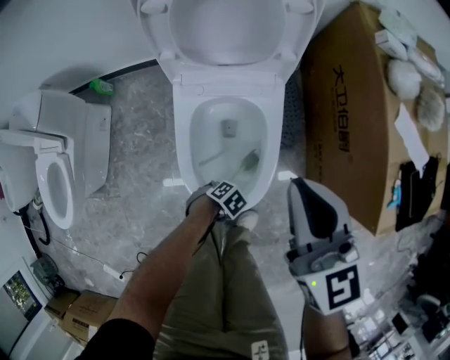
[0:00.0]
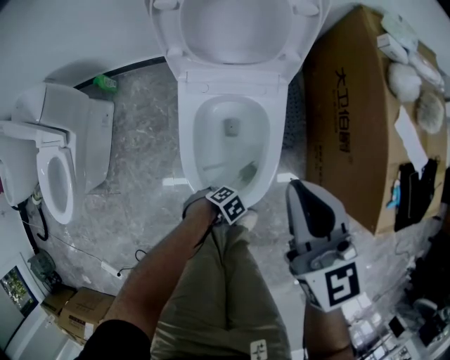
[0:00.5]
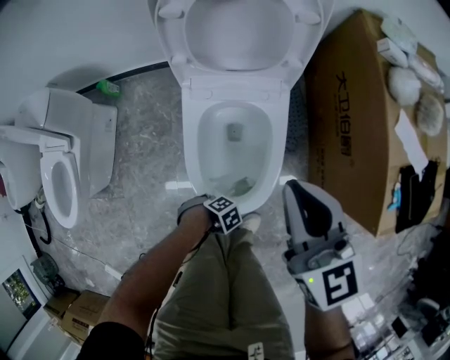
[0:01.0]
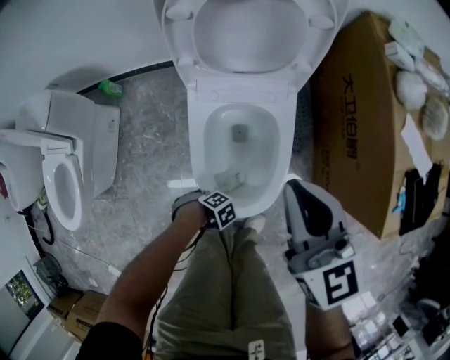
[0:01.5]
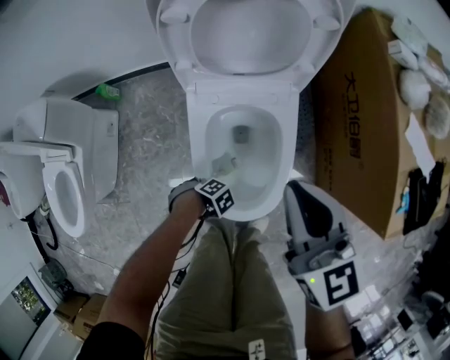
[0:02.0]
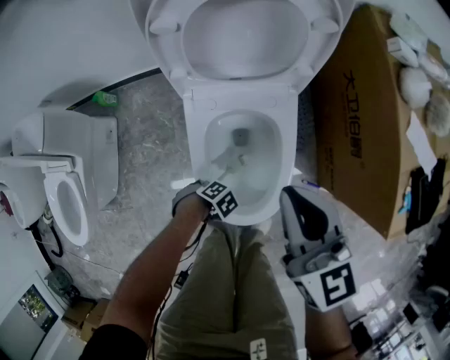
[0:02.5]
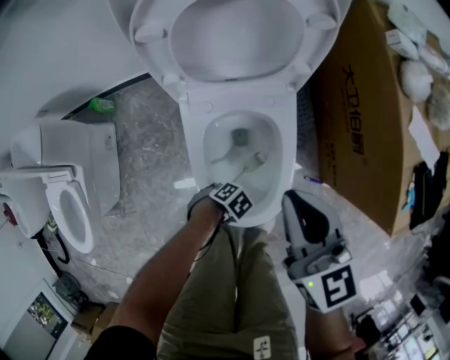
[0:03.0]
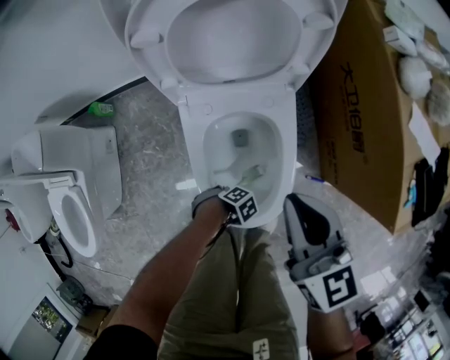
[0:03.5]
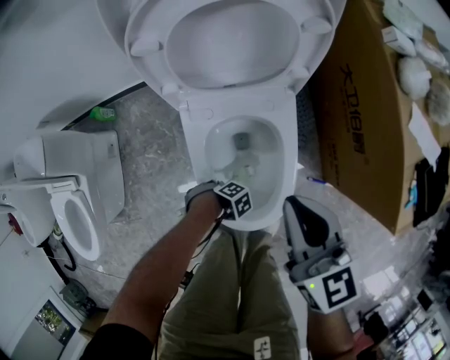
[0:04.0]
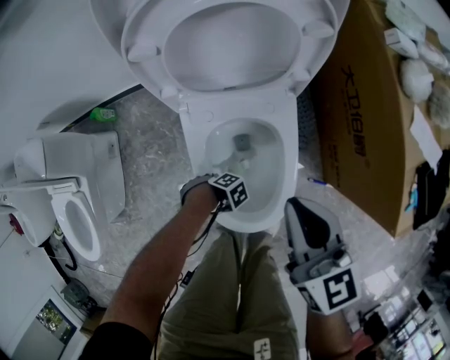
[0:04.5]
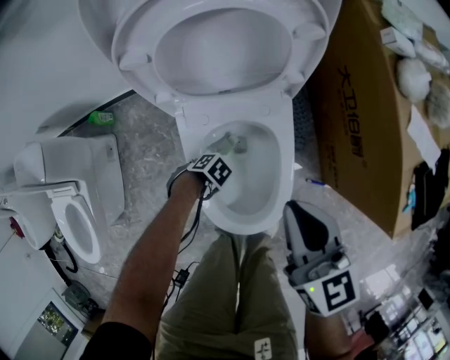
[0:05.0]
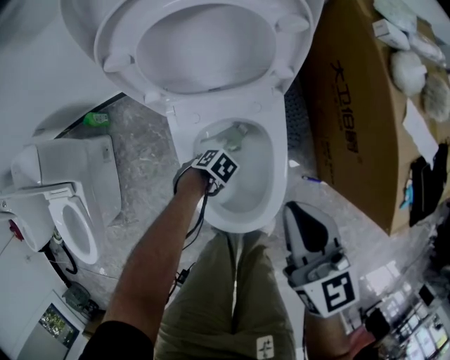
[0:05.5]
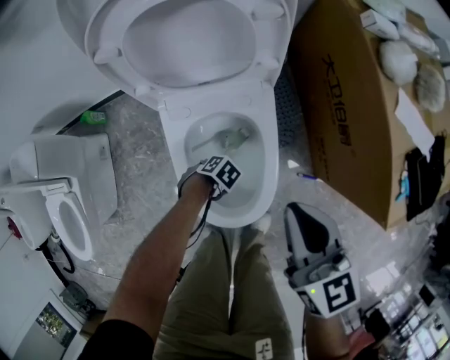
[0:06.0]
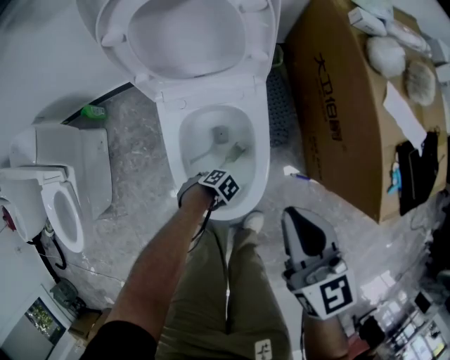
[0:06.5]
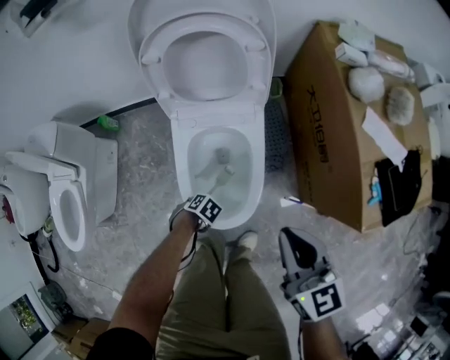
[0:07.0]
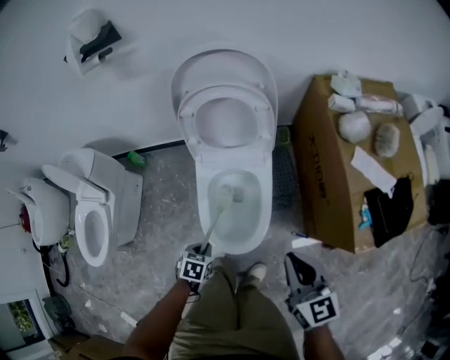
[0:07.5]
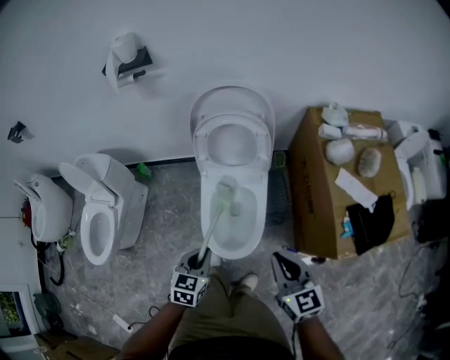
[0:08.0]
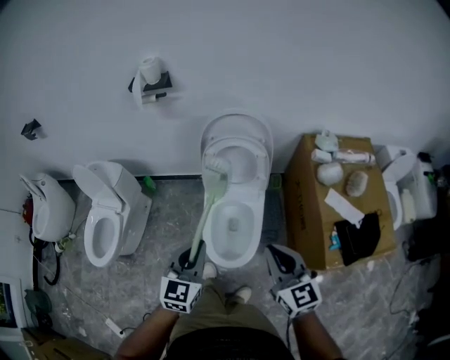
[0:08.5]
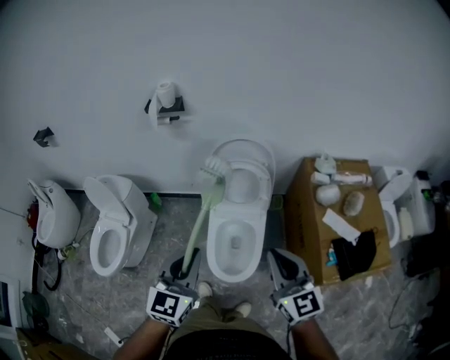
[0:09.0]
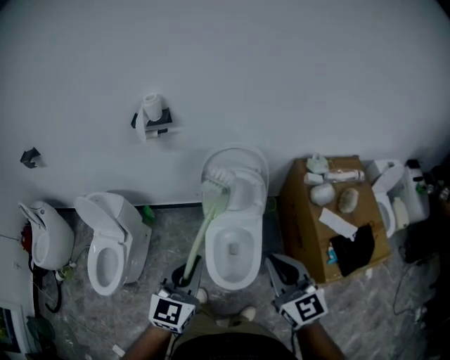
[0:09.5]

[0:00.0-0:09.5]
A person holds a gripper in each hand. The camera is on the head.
0:00.0 to 0:02.0: The left gripper moves about 15 cm, and swivels approximately 20 degrees, while the right gripper changes place by some 5 cm.
0:04.0 to 0:05.5: The left gripper moves to the right, some 10 cm, and changes its angle by approximately 30 degrees.
0:05.5 to 0:07.5: The right gripper ends up about 20 cm from where it was, while the left gripper moves upward, about 20 cm, and swivels about 50 degrees.
0:07.5 to 0:09.5: The right gripper travels upward by some 30 cm, and turns by approximately 20 degrees. The left gripper shifts roughly 50 cm upward, and tilts its fingers roughly 60 degrees upward.

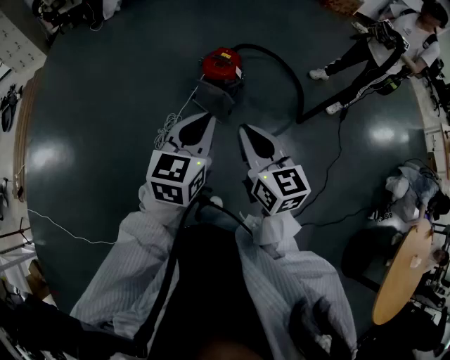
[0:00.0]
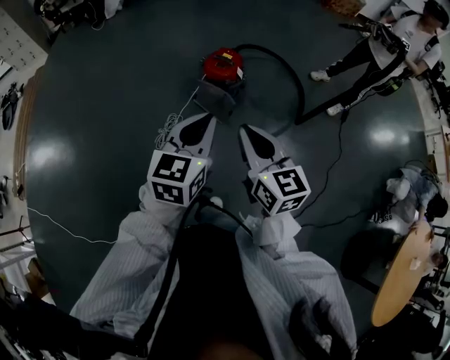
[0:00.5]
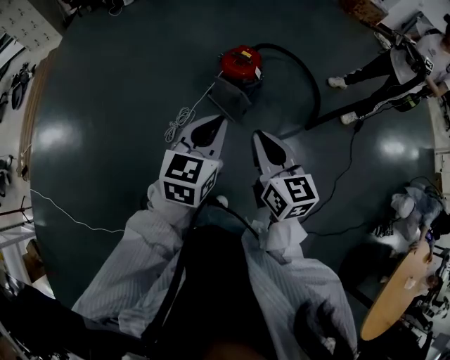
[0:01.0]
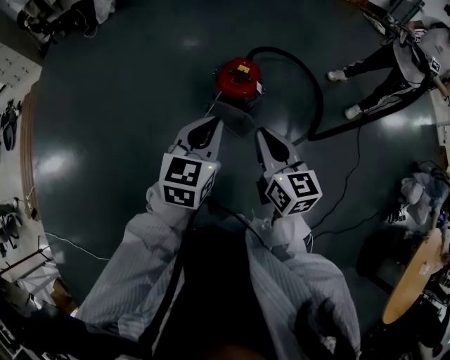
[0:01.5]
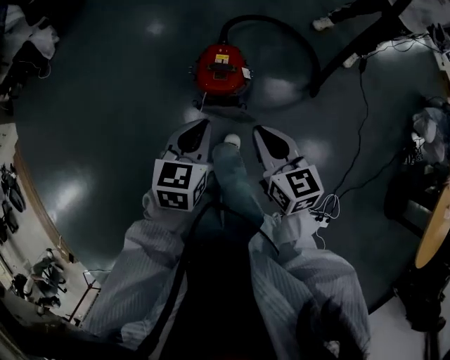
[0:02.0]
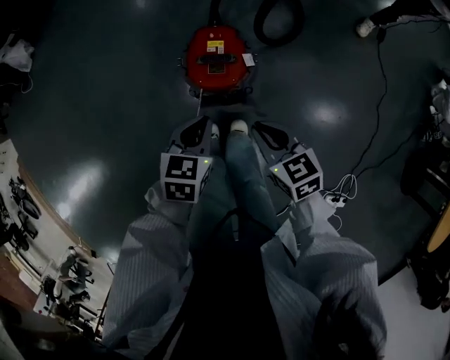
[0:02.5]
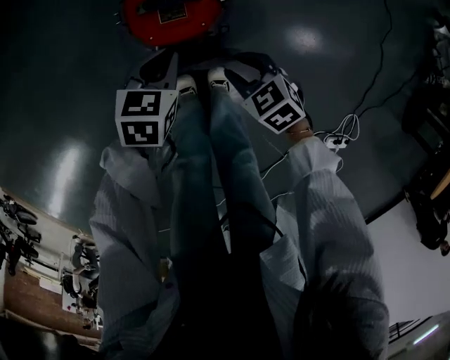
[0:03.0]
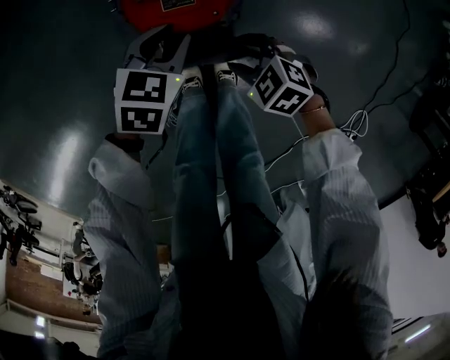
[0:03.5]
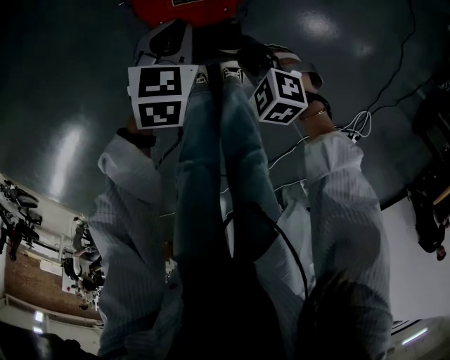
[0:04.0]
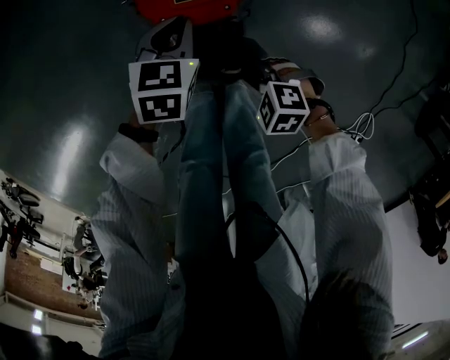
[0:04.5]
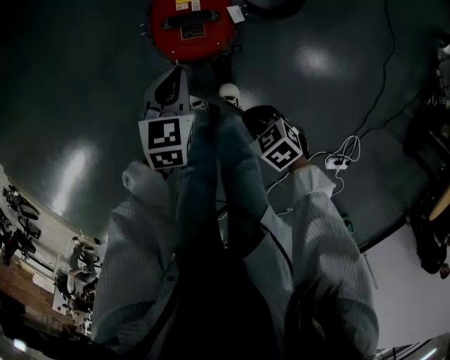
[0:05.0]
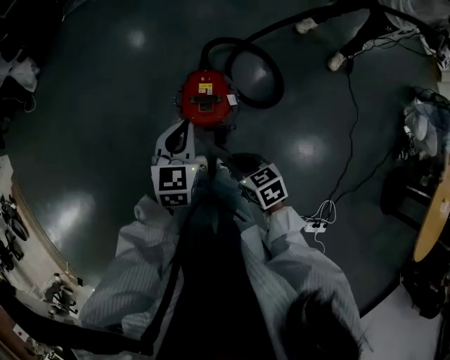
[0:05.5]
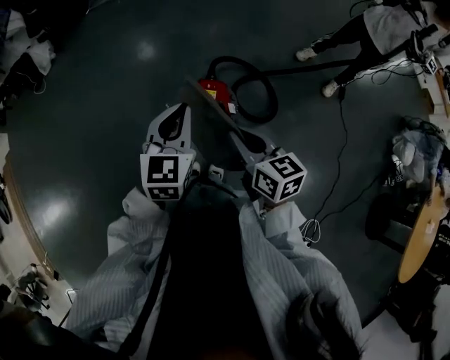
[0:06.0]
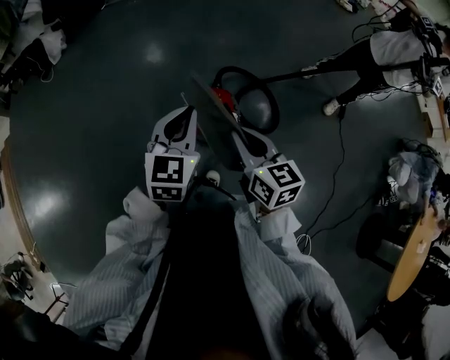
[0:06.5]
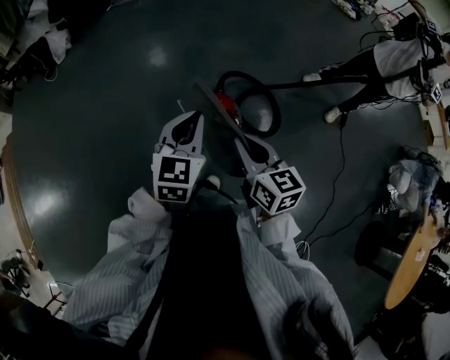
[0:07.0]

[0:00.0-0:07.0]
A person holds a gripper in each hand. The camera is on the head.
0:00.0 to 0:02.0: Both grippers travel together forward and downward, roughly 40 cm. The right gripper swivels about 20 degrees; the left gripper swivels some 30 degrees.
0:02.0 to 0:03.5: The two grippers go some 50 cm downward. The left gripper turns by about 30 degrees, and opens its fingers. The right gripper points its fingers roughly 30 degrees further downward, and opens.
0:03.5 to 0:05.0: Both grippers move upward, approximately 10 cm. The right gripper changes its angle by about 20 degrees, and closes up; the left gripper swivels approximately 20 degrees, and closes.
0:05.0 to 0:07.0: Both grippers travel together upward, some 50 cm. The right gripper tips its fingers upward by about 40 degrees. Meanwhile the left gripper changes its angle by about 30 degrees.

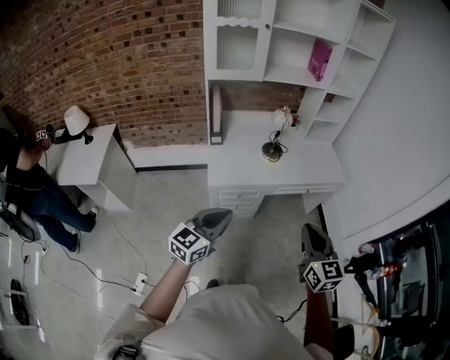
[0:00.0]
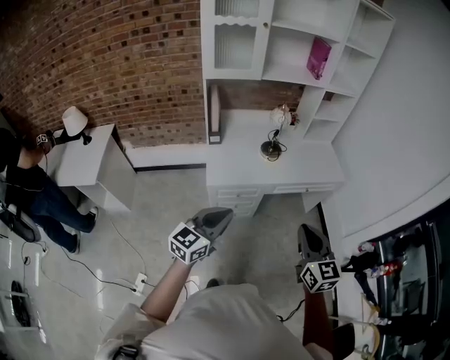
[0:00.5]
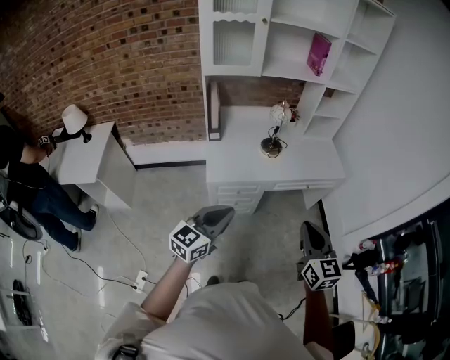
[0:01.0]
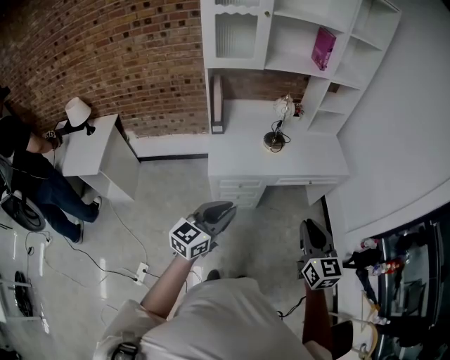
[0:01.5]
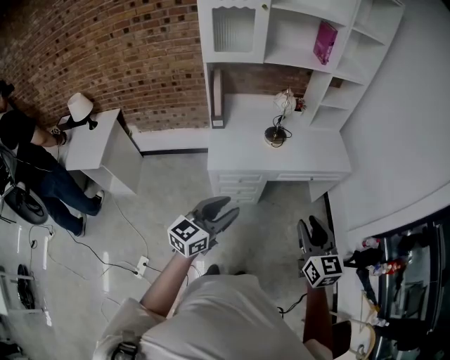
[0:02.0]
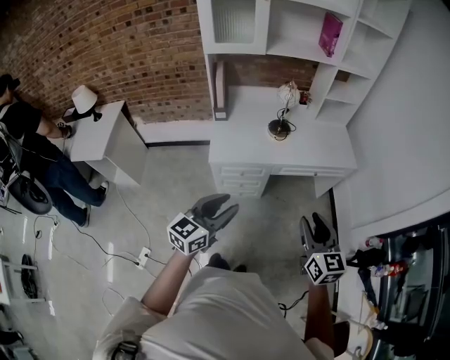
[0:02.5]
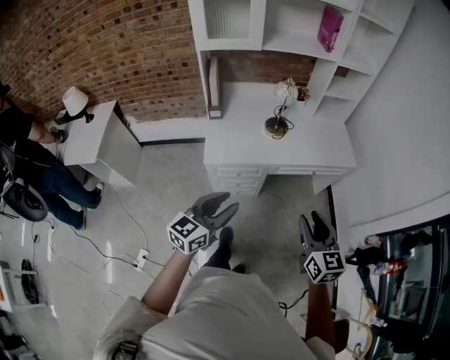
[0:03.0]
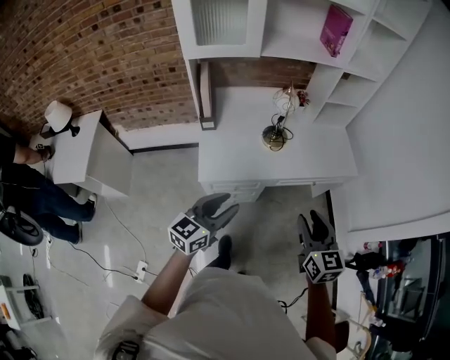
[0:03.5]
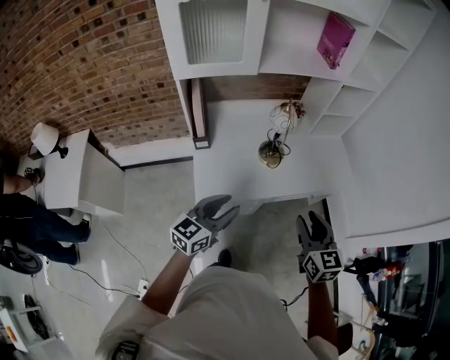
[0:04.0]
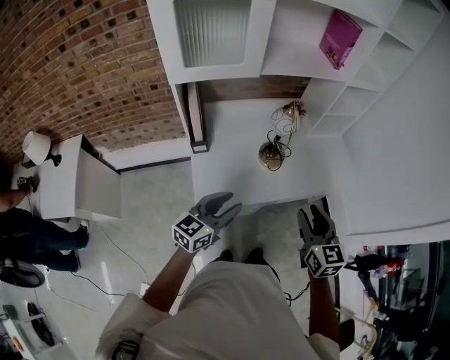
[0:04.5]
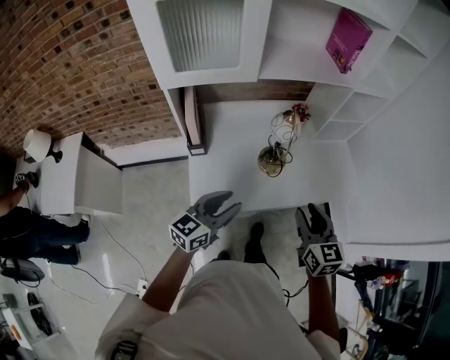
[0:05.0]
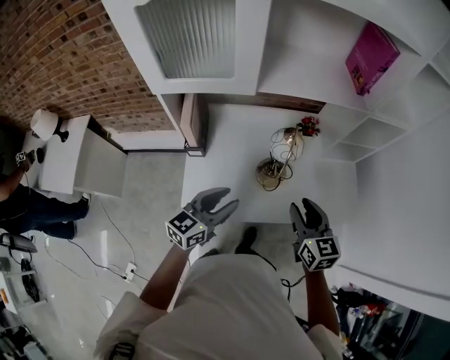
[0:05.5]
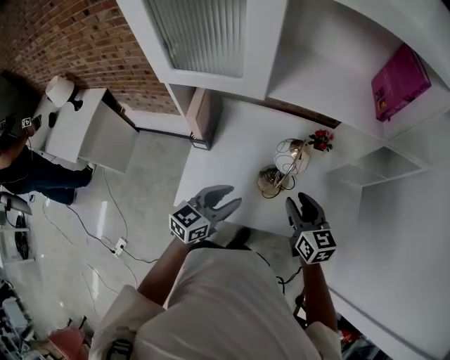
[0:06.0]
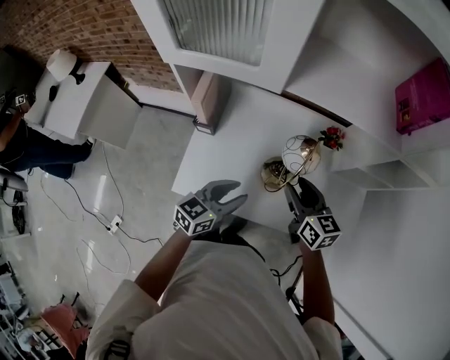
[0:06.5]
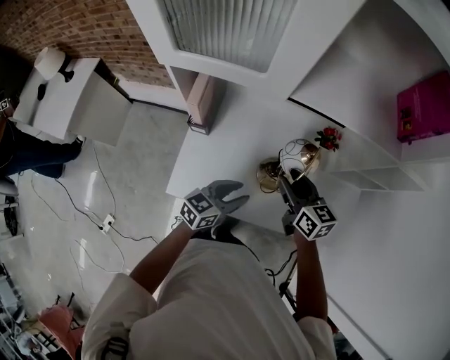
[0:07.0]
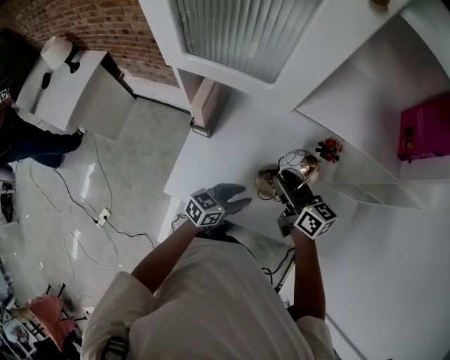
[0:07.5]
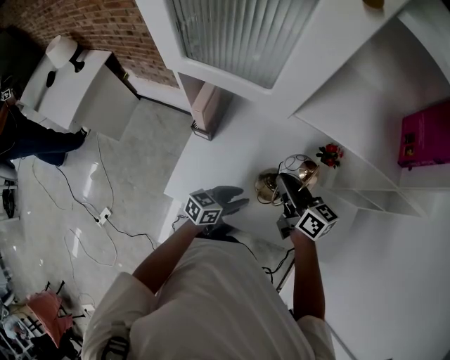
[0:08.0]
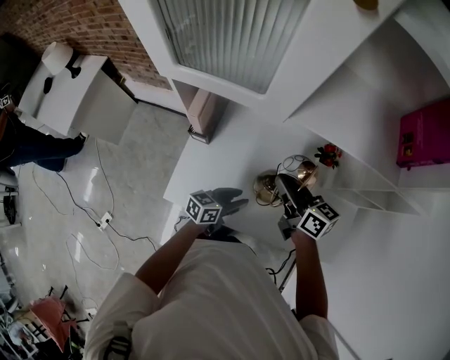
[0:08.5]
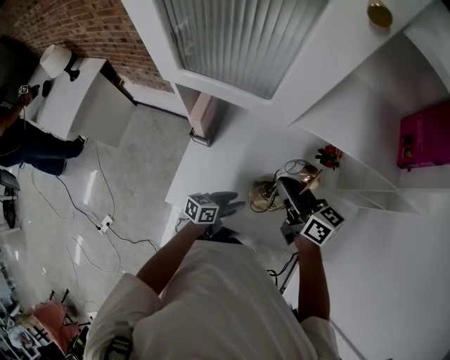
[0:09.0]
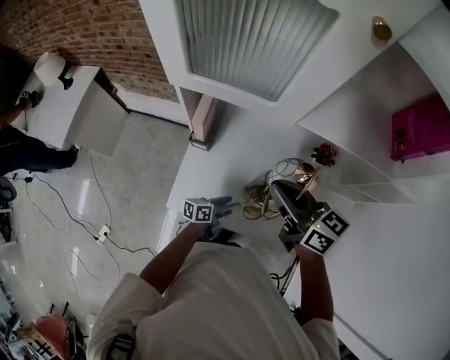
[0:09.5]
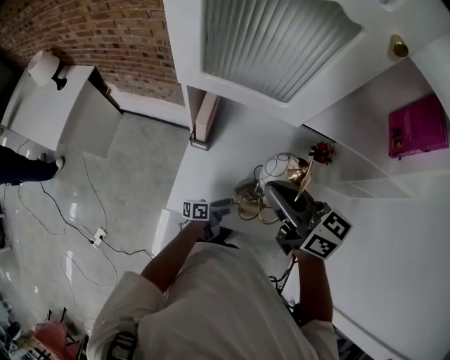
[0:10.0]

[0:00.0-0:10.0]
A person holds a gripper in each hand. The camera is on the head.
0:00.0 to 0:02.0: The left gripper opens. Meanwhile the right gripper moves approximately 5 cm, and opens up.
0:02.0 to 0:04.0: The two grippers go approximately 25 cm forward.
0:04.0 to 0:06.0: Both grippers travel together forward, roughly 30 cm. The right gripper rotates approximately 30 degrees.
0:06.0 to 0:08.0: The left gripper travels downward by some 15 cm, and rotates about 20 degrees, while the right gripper moves forward and to the left, some 15 cm, turns by approximately 30 degrees, and closes its fingers.
0:08.0 to 0:10.0: The left gripper travels downward and to the left by approximately 10 cm, swivels some 40 degrees, and opens its fingers, while the right gripper shifts some 20 cm upward and to the left.
